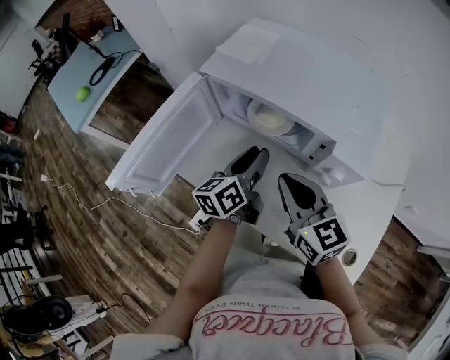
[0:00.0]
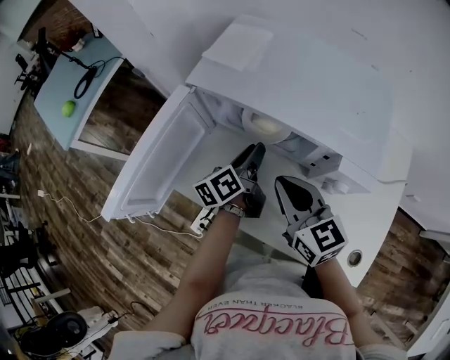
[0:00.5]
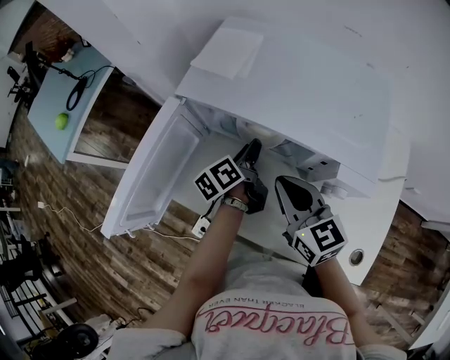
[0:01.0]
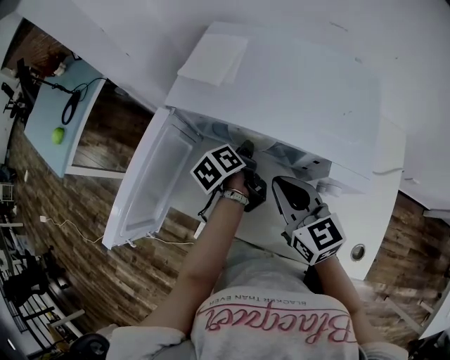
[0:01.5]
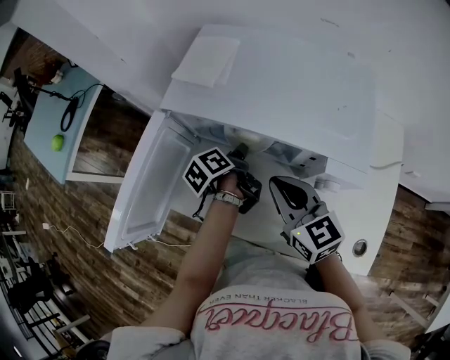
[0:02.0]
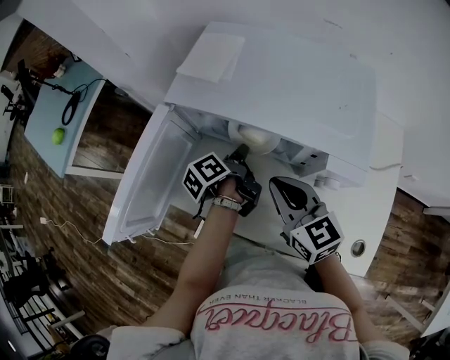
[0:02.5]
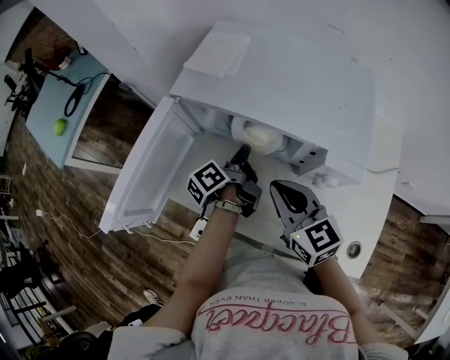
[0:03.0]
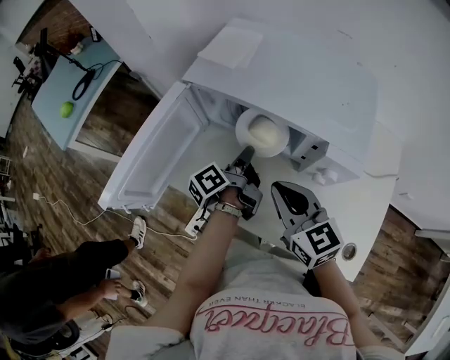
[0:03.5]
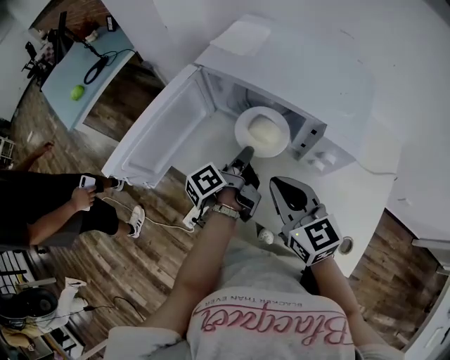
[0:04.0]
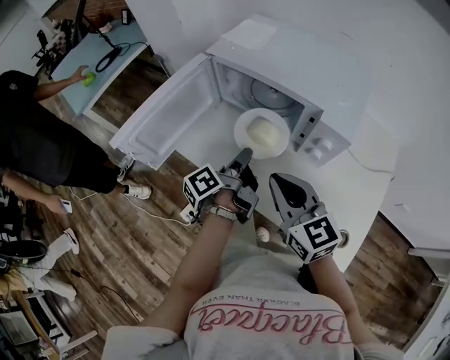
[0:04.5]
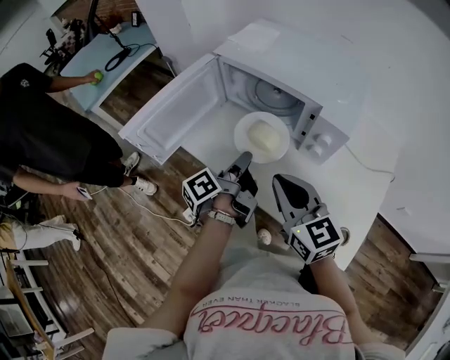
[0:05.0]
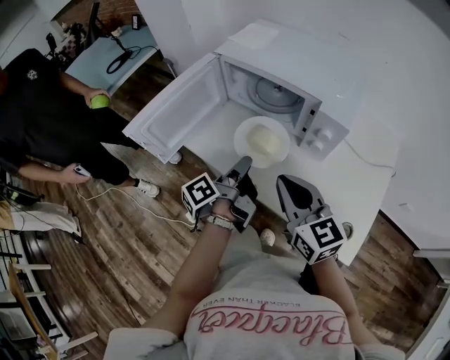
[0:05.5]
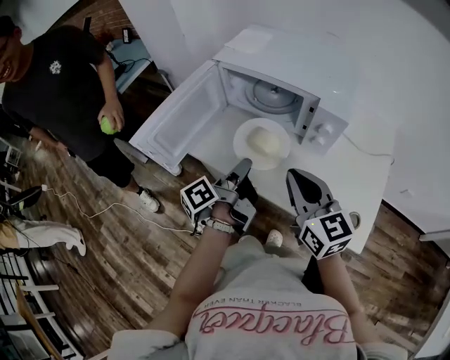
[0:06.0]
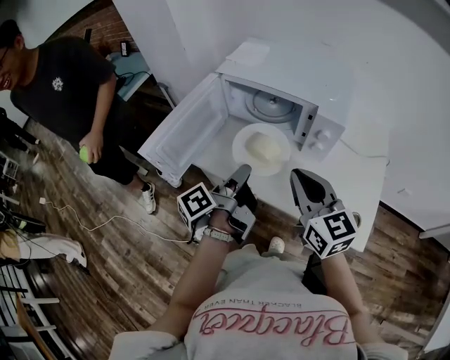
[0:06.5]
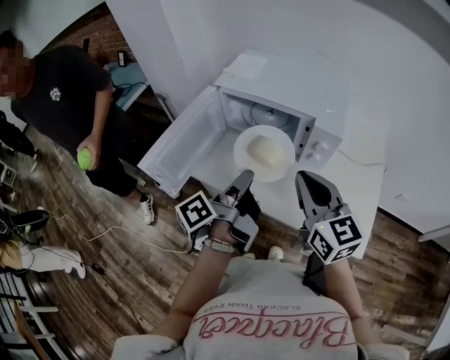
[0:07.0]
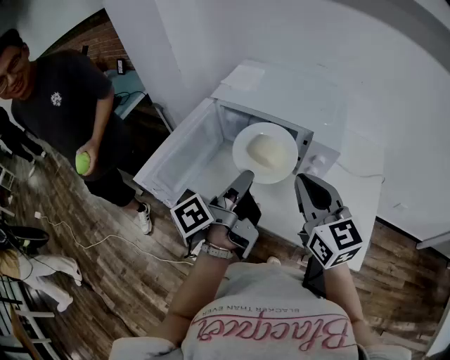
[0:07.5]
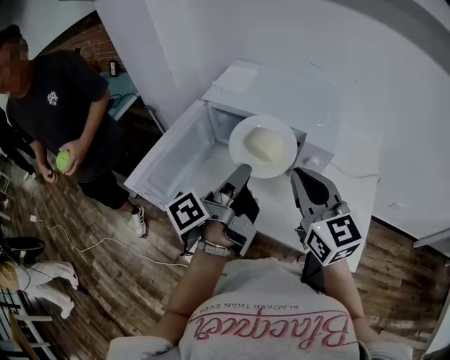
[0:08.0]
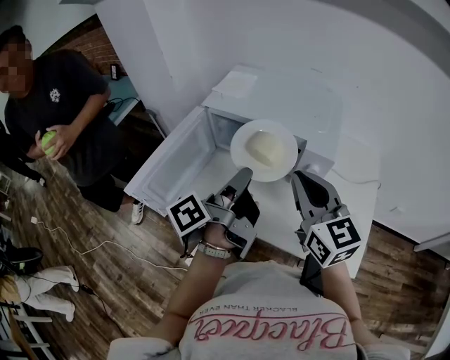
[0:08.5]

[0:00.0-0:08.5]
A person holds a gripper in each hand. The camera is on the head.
0:00.0 to 0:02.0: The right gripper is displaced forward by approximately 5 cm. Meanwhile the left gripper heads forward and downward, covering approximately 15 cm, and swivels roughly 40 degrees.
0:02.0 to 0:04.0: The left gripper moves backward and upward, about 10 cm, and turns by roughly 30 degrees. Meanwhile the right gripper shifts roughly 10 cm backward.
0:04.0 to 0:06.5: The left gripper shifts roughly 20 cm backward, upward and to the left, while the right gripper is displaced backward and upward by roughly 10 cm.
0:06.5 to 0:08.5: The right gripper goes approximately 10 cm forward and upward. The left gripper heads upward and forward, covering some 10 cm.

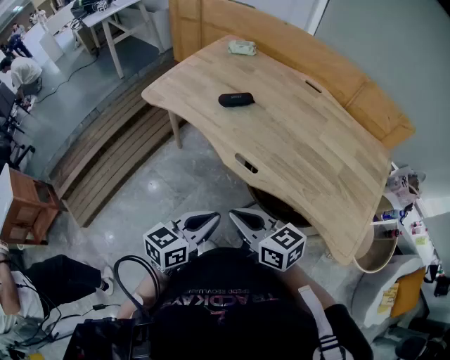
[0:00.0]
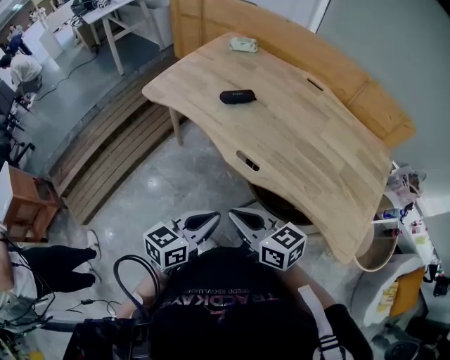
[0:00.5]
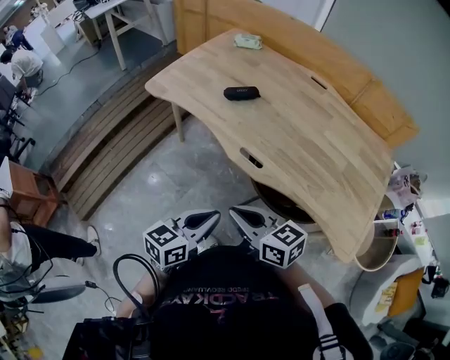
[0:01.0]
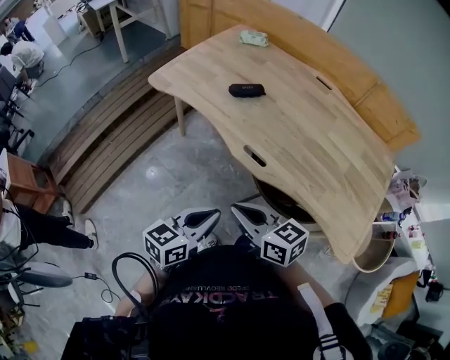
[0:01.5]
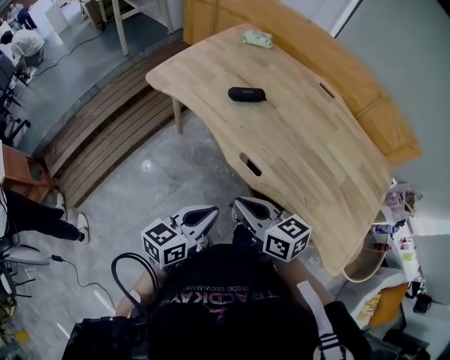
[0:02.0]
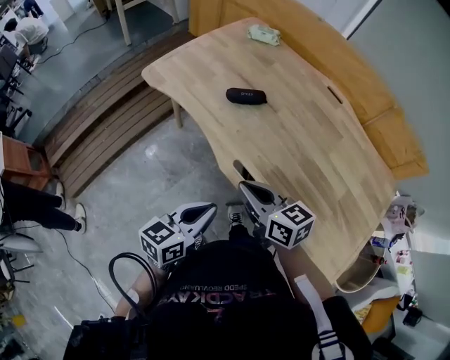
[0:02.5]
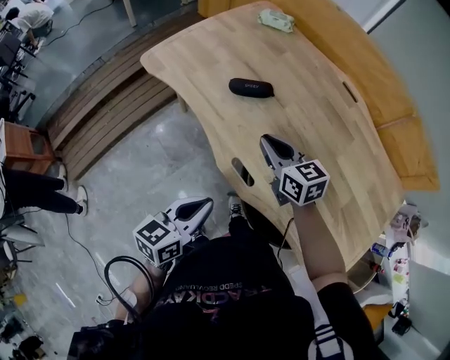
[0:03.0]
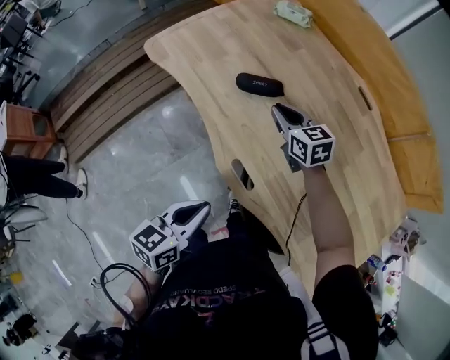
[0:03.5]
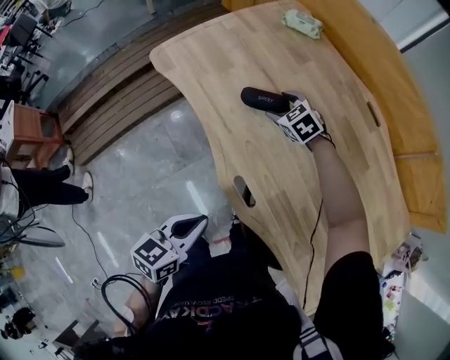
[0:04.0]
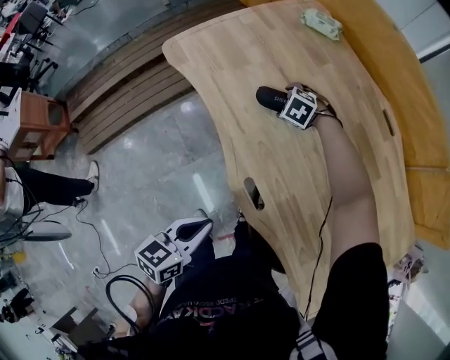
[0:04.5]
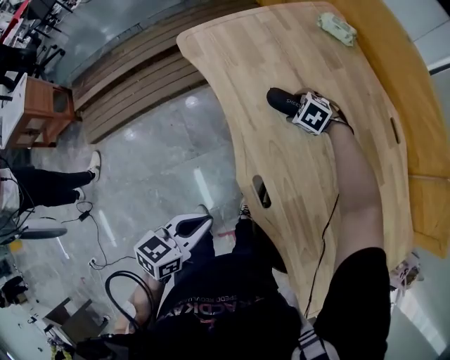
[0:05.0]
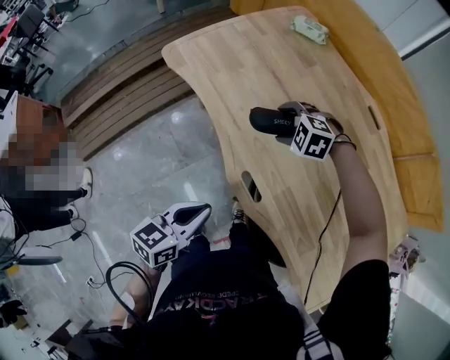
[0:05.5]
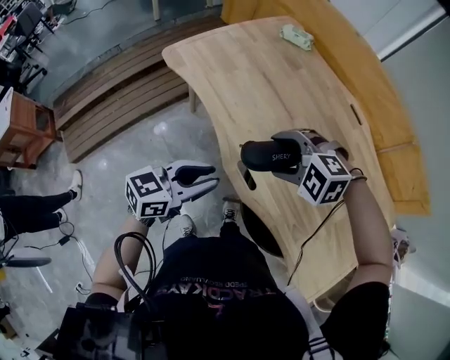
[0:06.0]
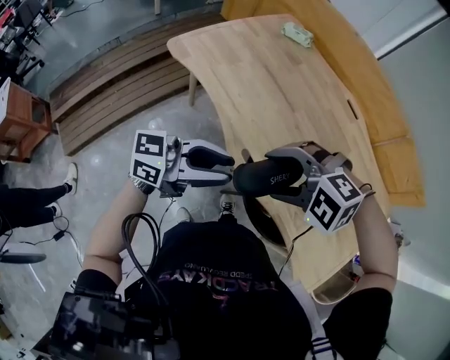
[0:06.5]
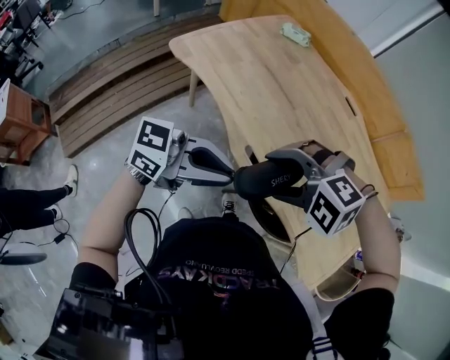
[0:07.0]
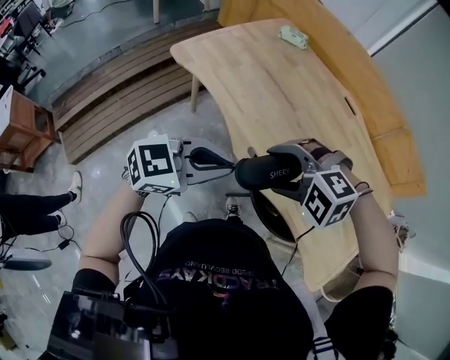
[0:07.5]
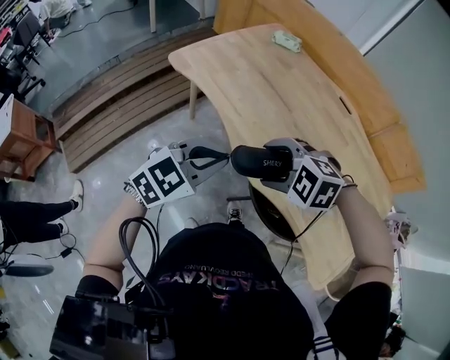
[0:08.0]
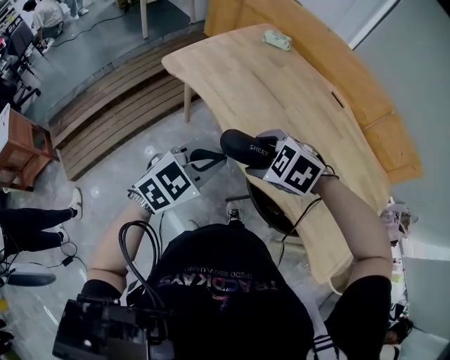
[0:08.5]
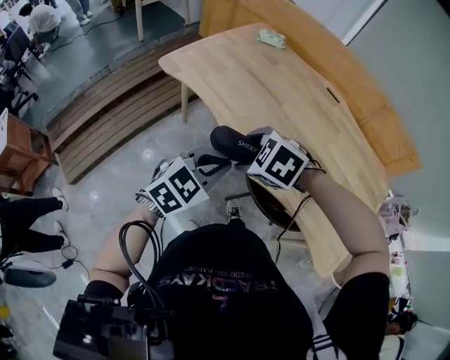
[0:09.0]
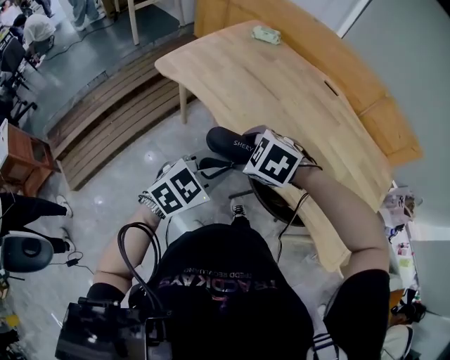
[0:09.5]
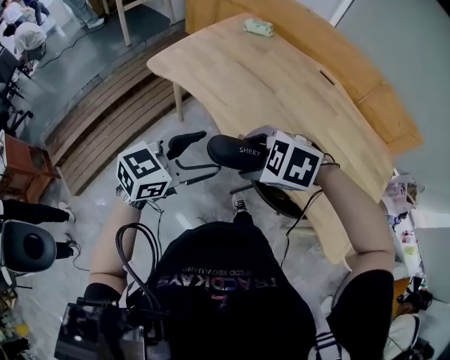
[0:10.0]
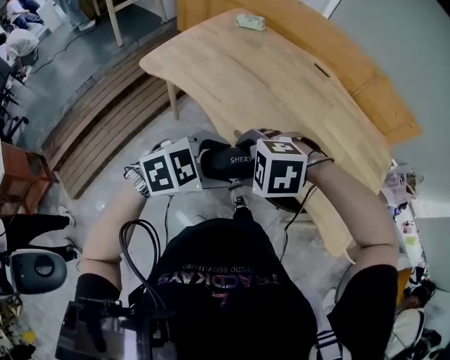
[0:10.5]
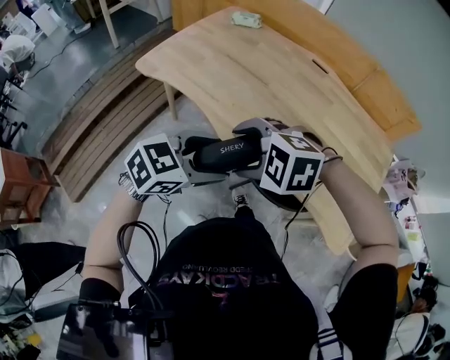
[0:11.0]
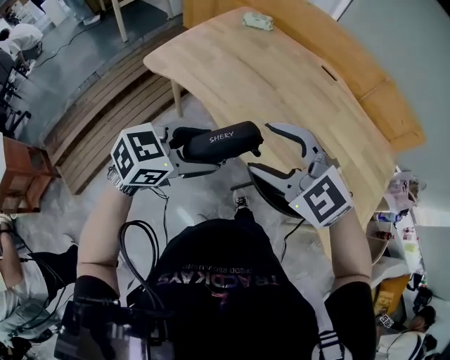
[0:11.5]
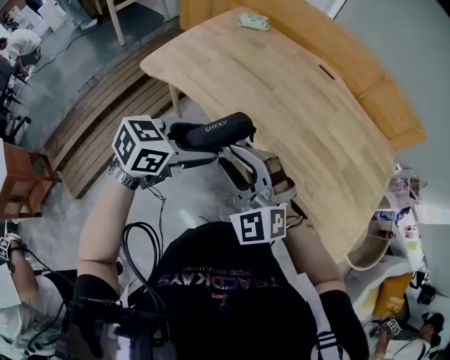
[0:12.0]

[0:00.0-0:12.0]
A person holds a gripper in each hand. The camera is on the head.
0:00.0 to 0:02.0: The right gripper is displaced forward by approximately 5 cm.
0:02.0 to 0:04.0: The right gripper is displaced forward and downward by approximately 50 cm, rotates around the line of its fingers by approximately 50 degrees, counterclockwise from behind, and opens its fingers. The left gripper heads forward and downward, covering roughly 10 cm, and changes its angle by approximately 20 degrees.
0:04.0 to 0:06.0: The left gripper travels upward by about 5 cm, and changes its angle by roughly 30 degrees; the right gripper ends up about 30 cm from where it was, and rolls counterclockwise, seen from behind, by roughly 40 degrees.
0:06.0 to 0:08.0: The right gripper ends up some 10 cm from where it was. Meanwhile the left gripper shifts approximately 5 cm upward, and turns by some 40 degrees.
0:08.0 to 0:10.0: The right gripper moves some 5 cm. Meanwhile the left gripper opens.
0:10.0 to 0:12.0: The right gripper tips its fingers upward by about 40 degrees, and closes.

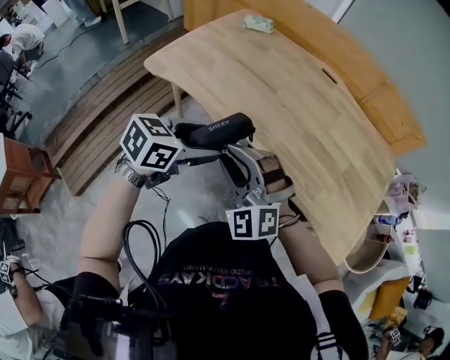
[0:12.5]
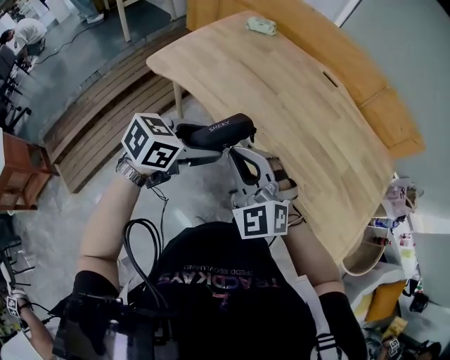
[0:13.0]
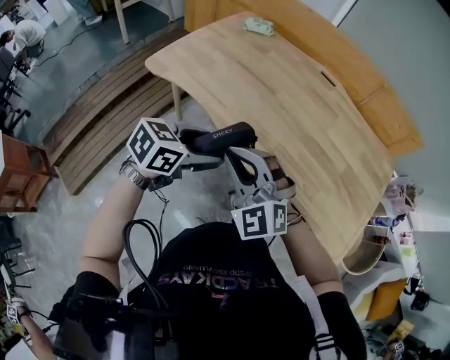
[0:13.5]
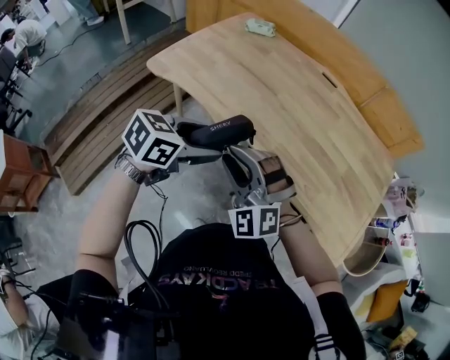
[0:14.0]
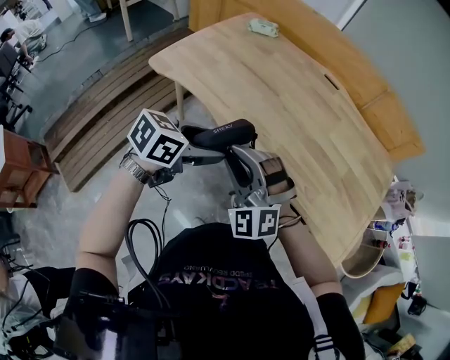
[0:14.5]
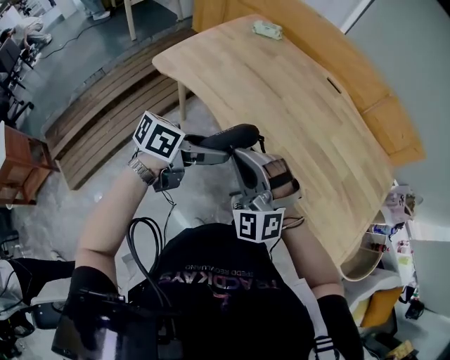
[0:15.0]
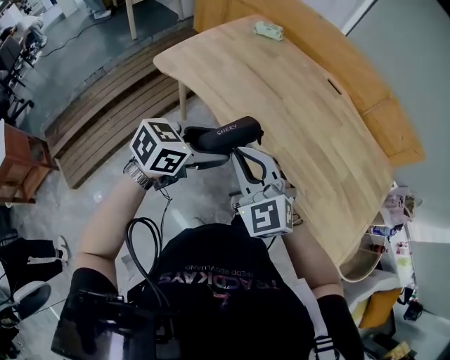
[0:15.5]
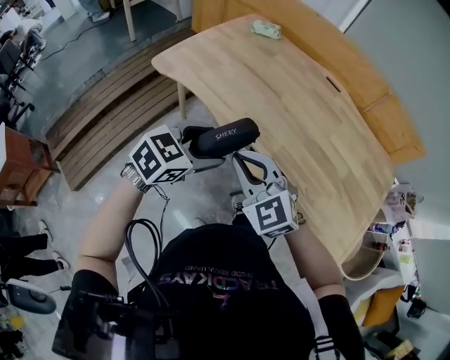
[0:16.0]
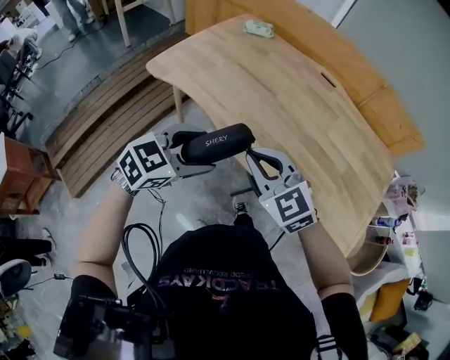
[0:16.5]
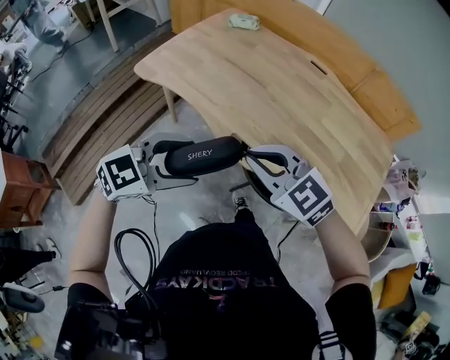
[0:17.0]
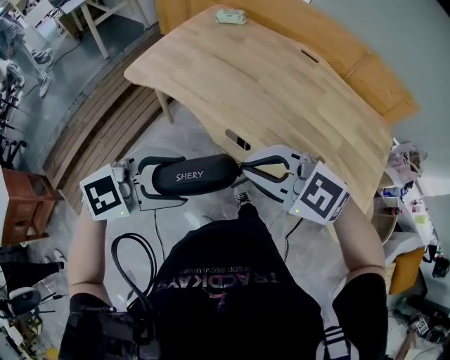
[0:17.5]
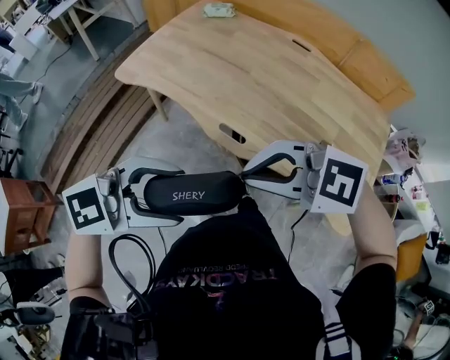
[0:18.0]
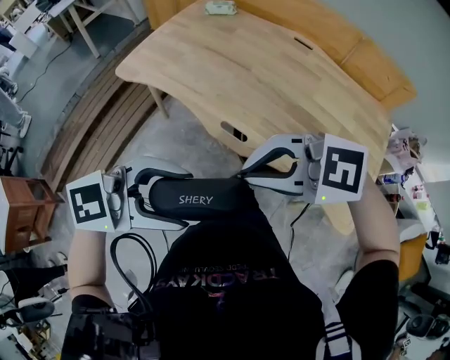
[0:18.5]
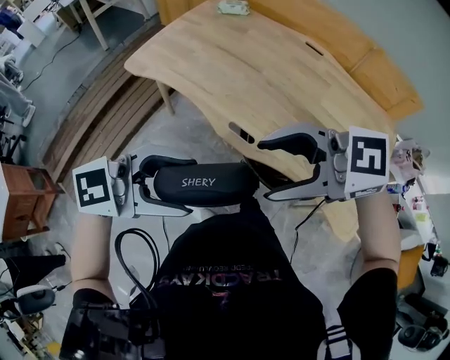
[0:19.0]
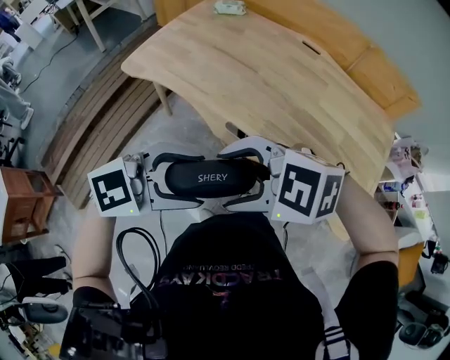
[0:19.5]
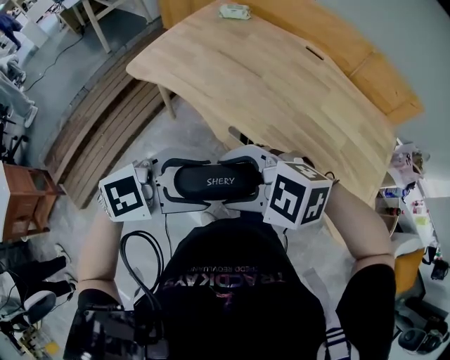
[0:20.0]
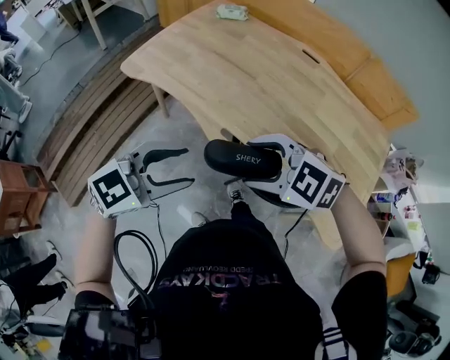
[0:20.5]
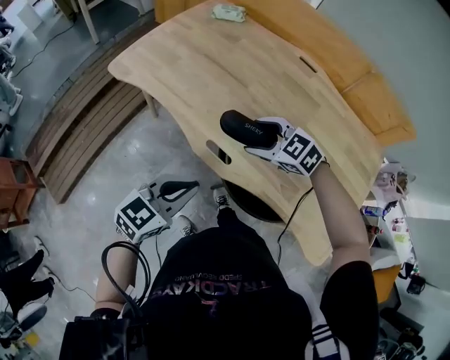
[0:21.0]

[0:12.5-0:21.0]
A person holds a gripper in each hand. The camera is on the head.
0:12.5 to 0:14.5: The grippers make only small movements.
0:14.5 to 0:16.5: The right gripper moves roughly 5 cm, and changes its angle by some 40 degrees. Meanwhile the left gripper swivels some 30 degrees.
0:16.5 to 0:19.0: The left gripper changes place by roughly 15 cm, and swivels roughly 30 degrees; the right gripper travels upward by some 10 cm, turns by roughly 50 degrees, and opens its fingers.
0:19.0 to 0:21.0: The grippers both shift downward by about 20 cm. The left gripper turns by about 40 degrees, and closes up. Meanwhile the right gripper changes its angle by about 30 degrees.
